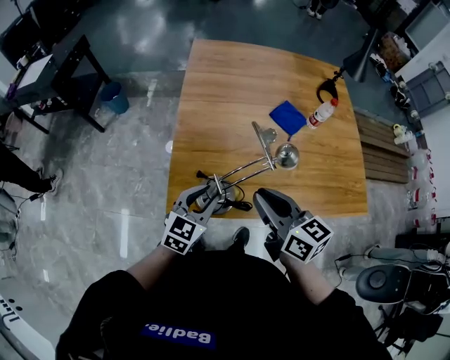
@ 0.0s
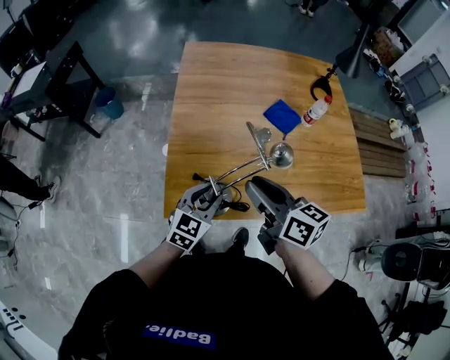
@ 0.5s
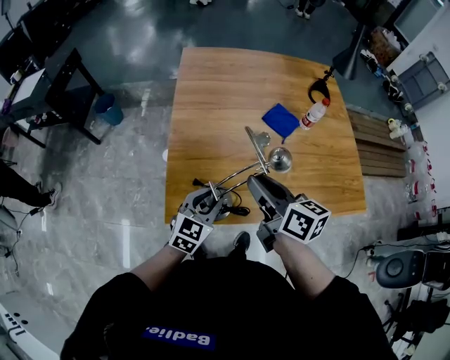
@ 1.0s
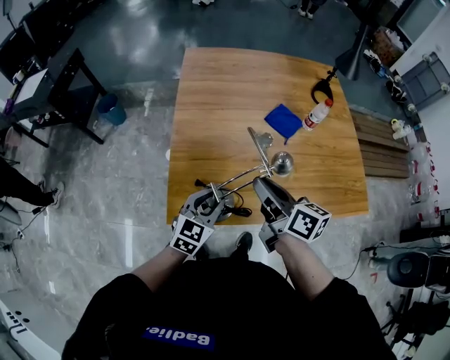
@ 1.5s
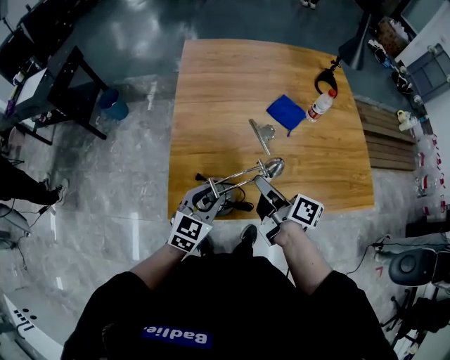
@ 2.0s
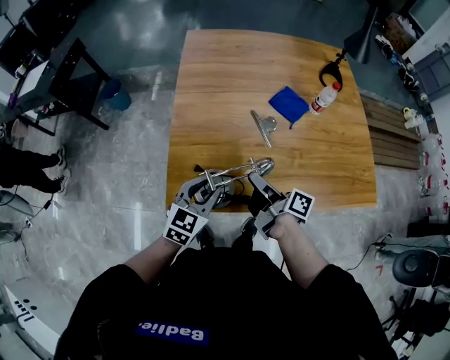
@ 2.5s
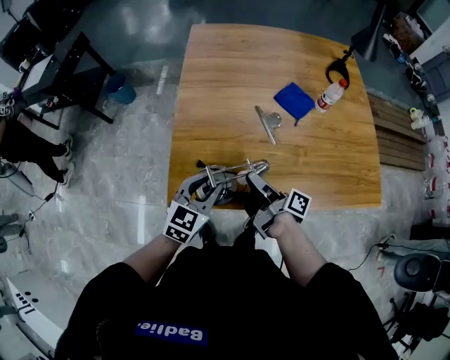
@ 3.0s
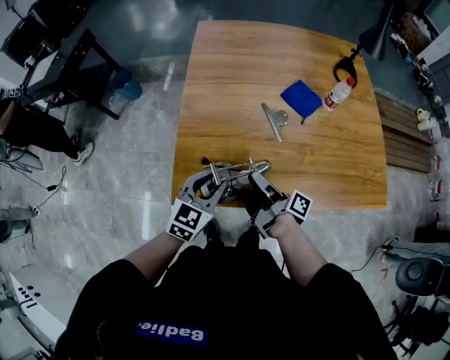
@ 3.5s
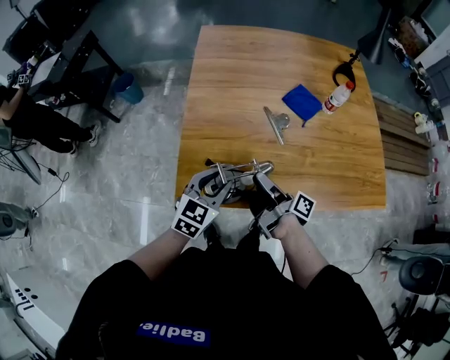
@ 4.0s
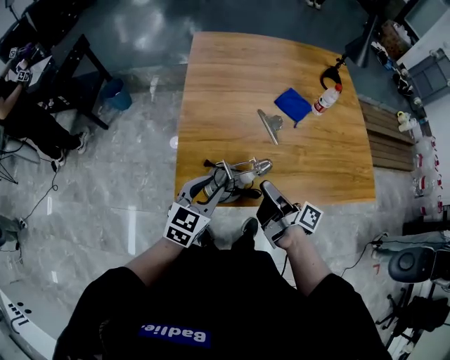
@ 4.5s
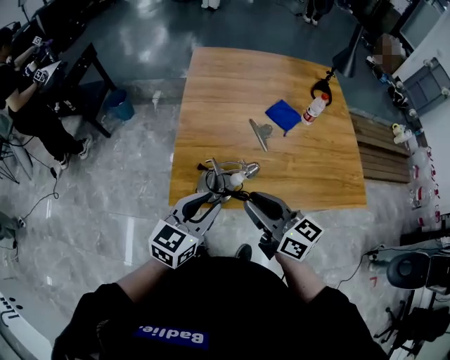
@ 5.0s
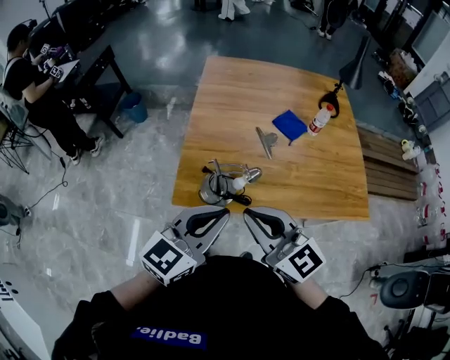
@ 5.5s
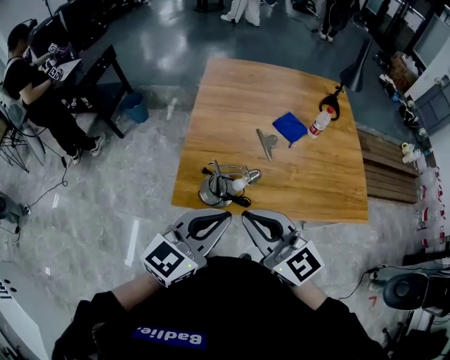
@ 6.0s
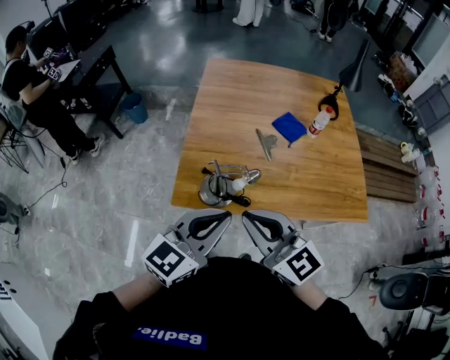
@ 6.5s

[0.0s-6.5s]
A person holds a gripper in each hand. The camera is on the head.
0.0s to 2.0s: The right gripper shifts some 10 cm downward and forward, and rotates around the line of its fingers by approximately 40 degrees, clockwise from behind.
2.0s to 4.5s: The right gripper shifts approximately 5 cm backward, and travels downward and back again, approximately 10 cm each way; the left gripper changes place by some 5 cm.
4.5s to 6.5s: Both grippers travel together upward and backward, approximately 25 cm. The left gripper closes up, while the right gripper rolls counterclockwise, seen from behind, by approximately 80 degrees, and closes up.

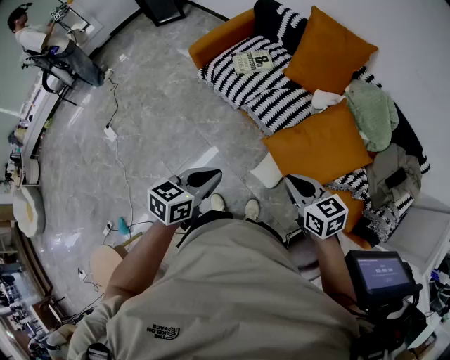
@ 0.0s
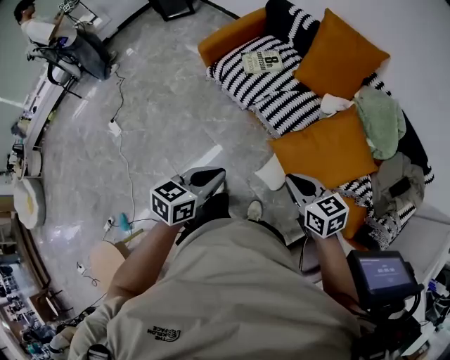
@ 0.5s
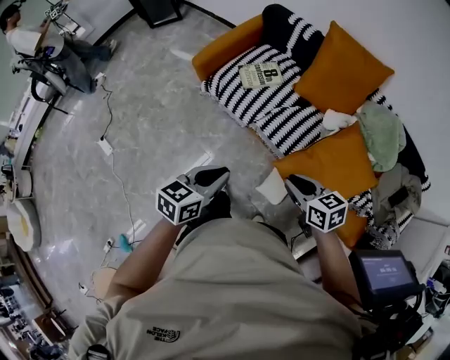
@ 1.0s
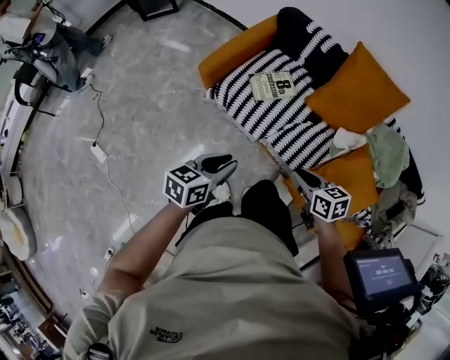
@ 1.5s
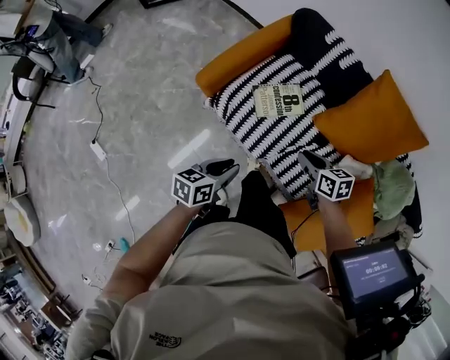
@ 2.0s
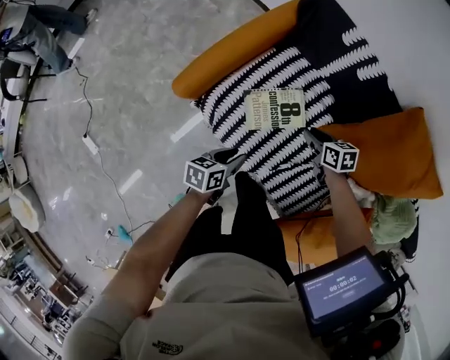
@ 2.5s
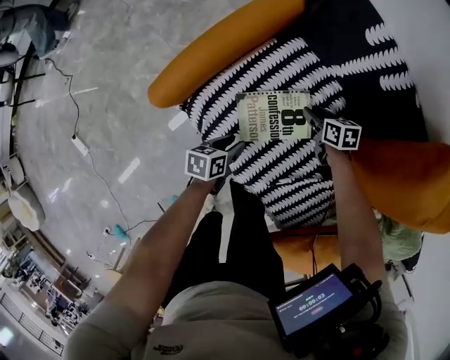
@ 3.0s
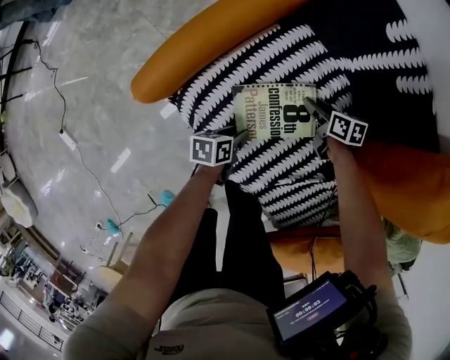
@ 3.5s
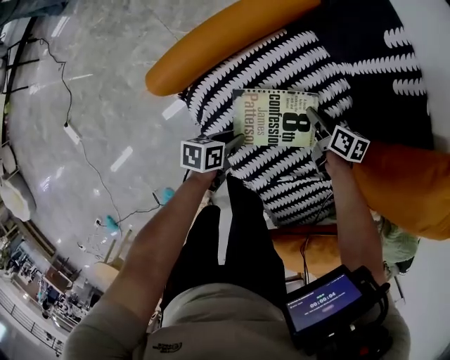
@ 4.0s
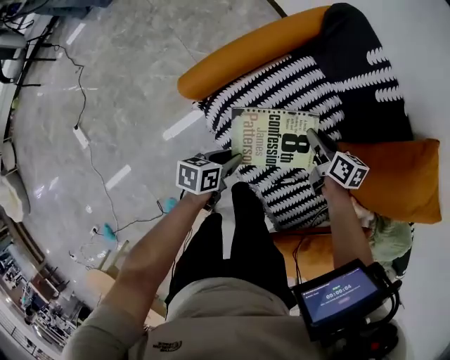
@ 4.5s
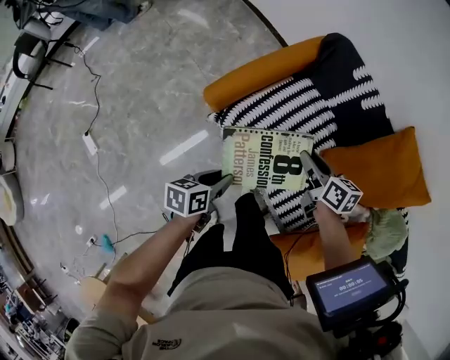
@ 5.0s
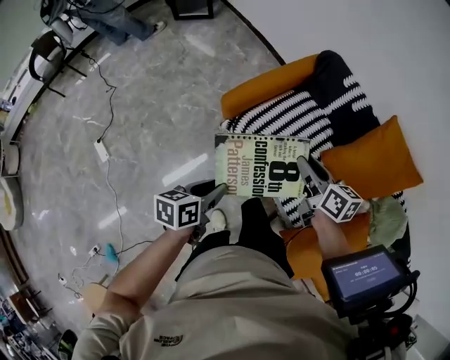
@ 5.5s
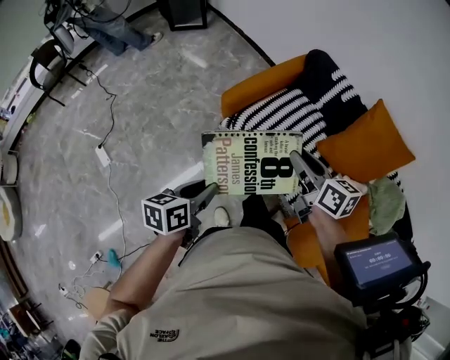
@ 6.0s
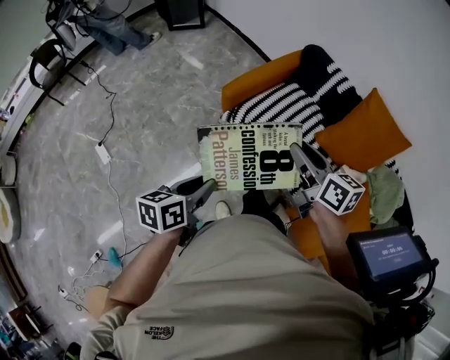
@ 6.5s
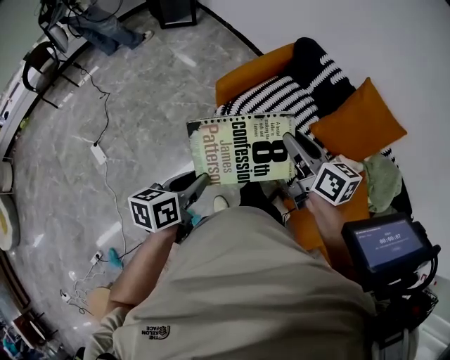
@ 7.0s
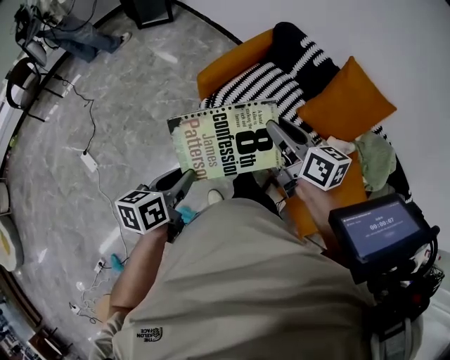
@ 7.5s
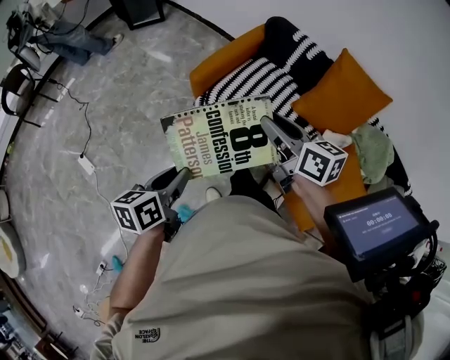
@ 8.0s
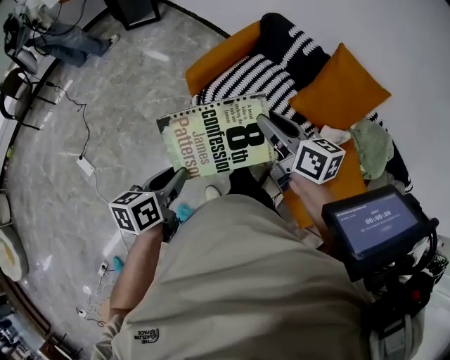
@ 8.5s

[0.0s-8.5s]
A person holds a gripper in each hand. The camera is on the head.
0.0s to 2.0s: The pair of grippers is taken forward, approximately 50 cm. The right gripper turns by roughly 20 degrees.
2.0s to 4.0s: The left gripper moves downward and forward, roughly 30 cm, and swivels approximately 30 degrees; the right gripper heads forward and downward, covering approximately 30 cm.
4.0s to 6.5s: The grippers make only small movements.
6.5s to 8.5s: Neither gripper changes place.

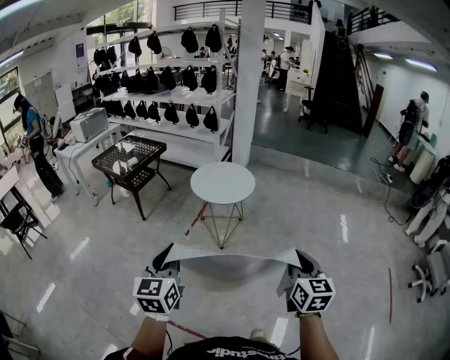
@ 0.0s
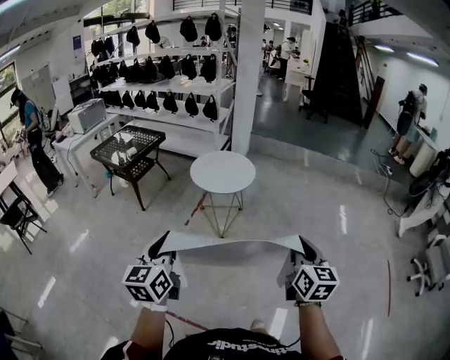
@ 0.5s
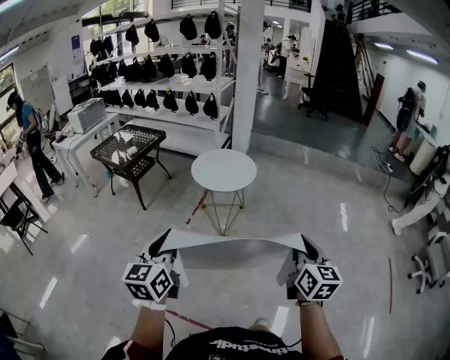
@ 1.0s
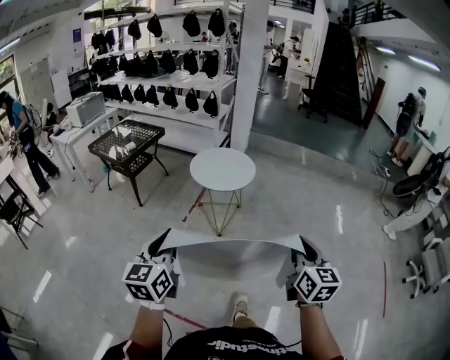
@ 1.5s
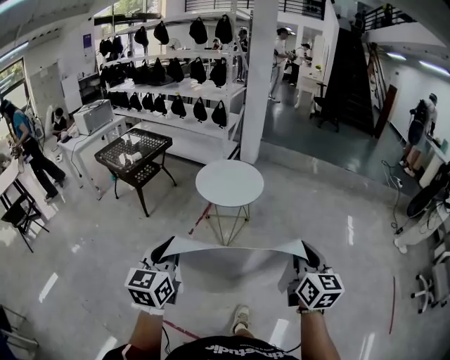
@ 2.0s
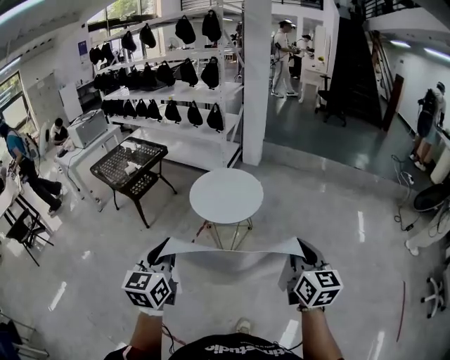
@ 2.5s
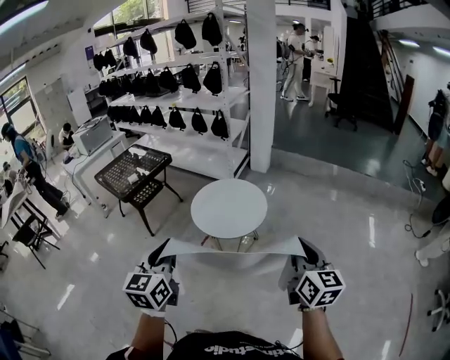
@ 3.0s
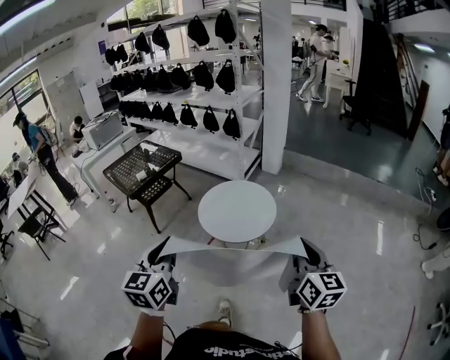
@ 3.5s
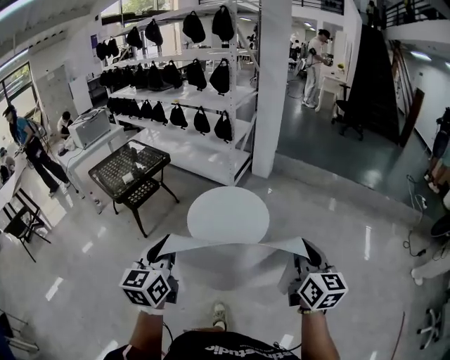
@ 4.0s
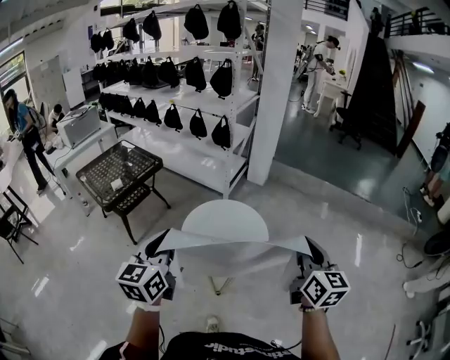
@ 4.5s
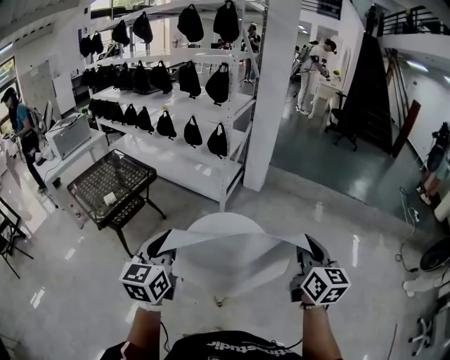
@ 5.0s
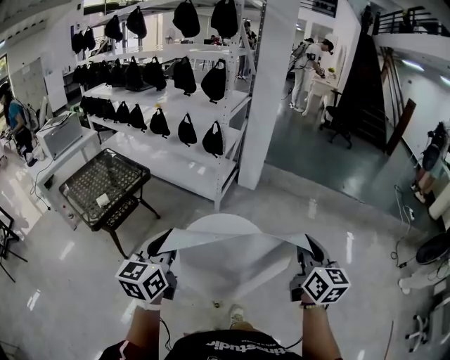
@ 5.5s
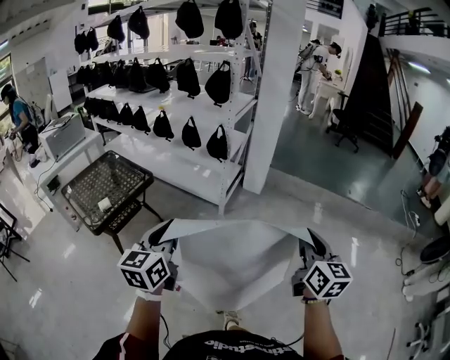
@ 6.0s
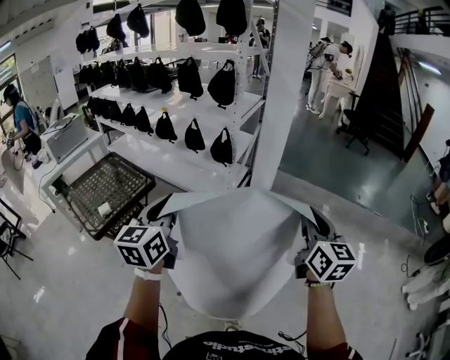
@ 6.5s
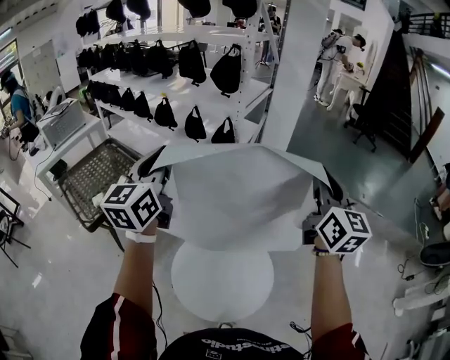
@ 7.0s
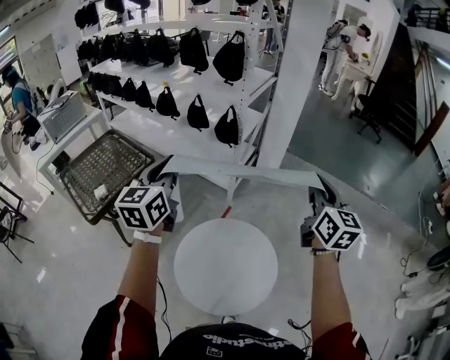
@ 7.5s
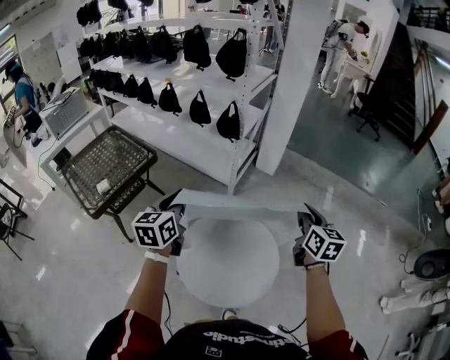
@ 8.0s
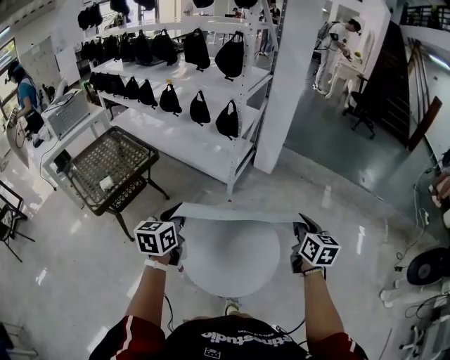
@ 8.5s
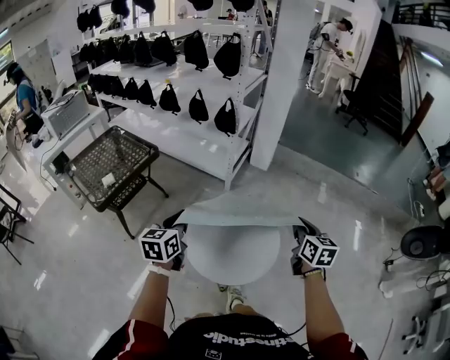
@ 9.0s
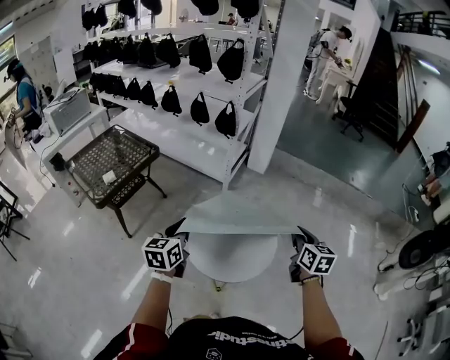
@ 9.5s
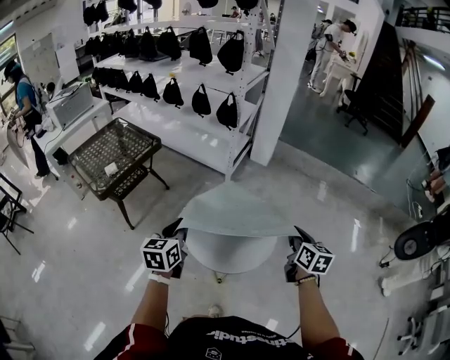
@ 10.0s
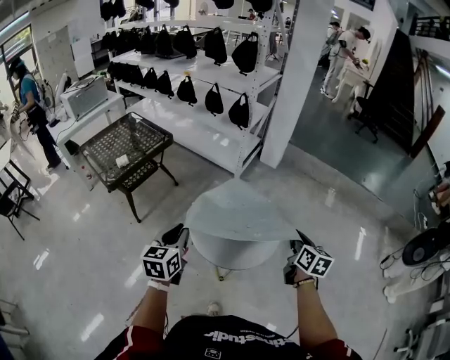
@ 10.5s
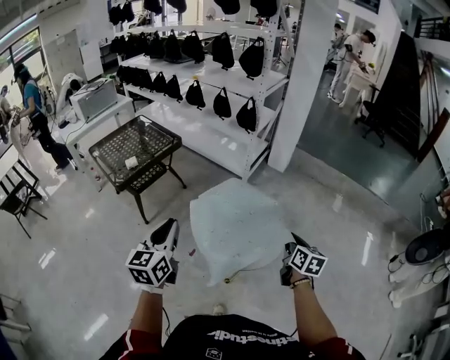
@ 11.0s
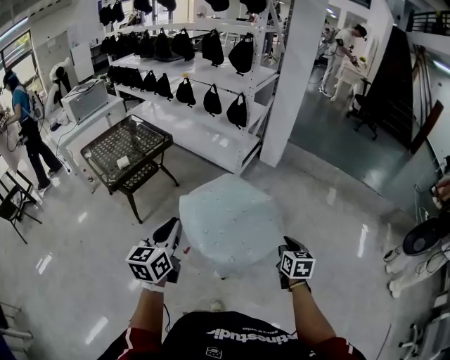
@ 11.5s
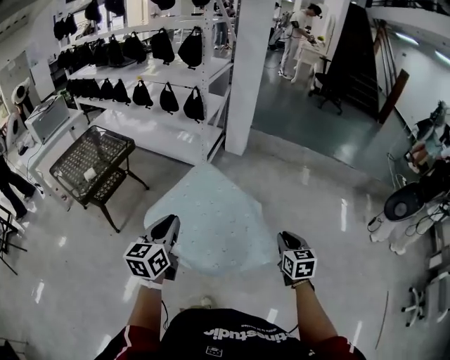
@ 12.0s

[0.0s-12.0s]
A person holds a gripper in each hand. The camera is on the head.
0.0s to 2.0s: The grippers both shift forward by about 10 cm.
2.0s to 4.0s: The grippers both shift forward by roughly 35 cm.
4.0s to 6.0s: The two grippers go some 35 cm forward.
6.0s to 8.0s: The two grippers go approximately 20 cm forward and downward.
8.0s to 10.0s: The grippers both shift backward by some 25 cm.
10.0s to 12.0s: The left gripper is displaced to the right, backward and upward by about 15 cm. Meanwhile the right gripper travels backward and to the right by roughly 15 cm.
